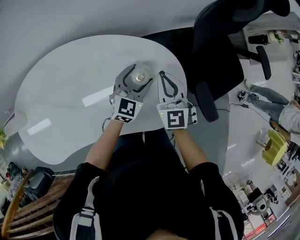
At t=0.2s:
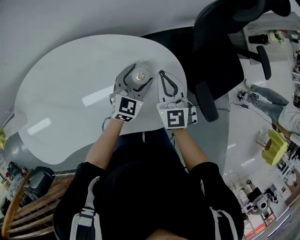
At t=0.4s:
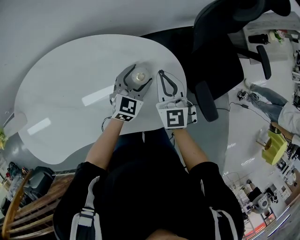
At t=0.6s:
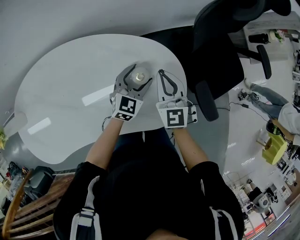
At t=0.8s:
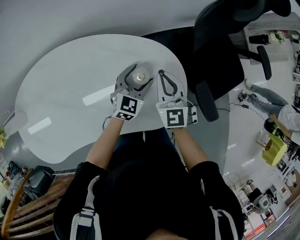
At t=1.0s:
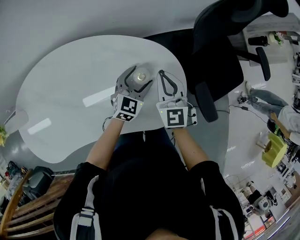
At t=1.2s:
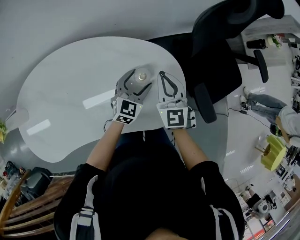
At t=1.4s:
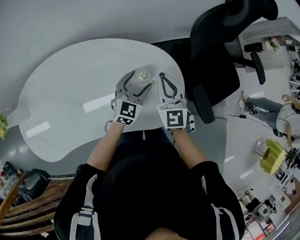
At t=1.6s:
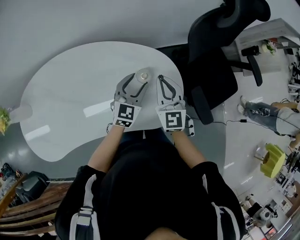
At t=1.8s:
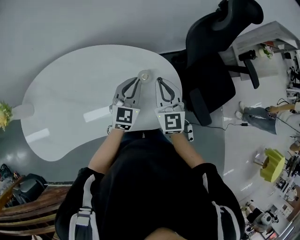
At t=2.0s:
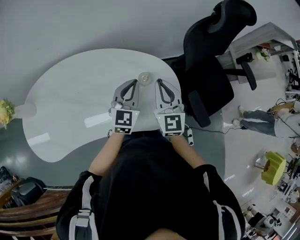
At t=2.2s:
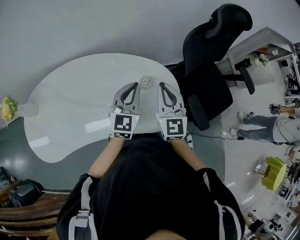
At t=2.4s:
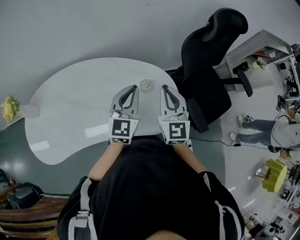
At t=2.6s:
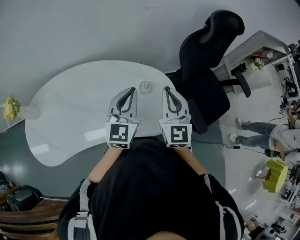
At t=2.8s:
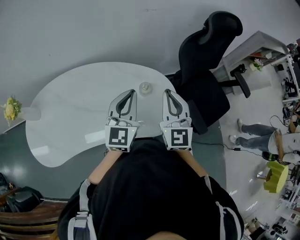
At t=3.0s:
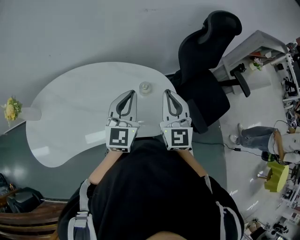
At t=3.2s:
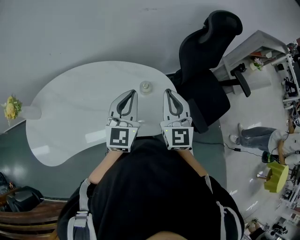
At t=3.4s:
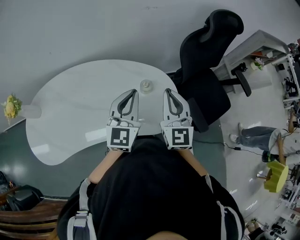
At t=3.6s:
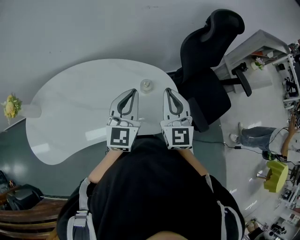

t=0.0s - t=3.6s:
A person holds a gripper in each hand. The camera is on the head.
t=0.0s - t=1.8s: The right gripper shifts approximately 10 cm upward. The left gripper moves upward and backward, approximately 10 cm, and closes its fingers.
t=1.8s - t=3.6s: Both grippers travel together upward and backward, roughly 15 cm.

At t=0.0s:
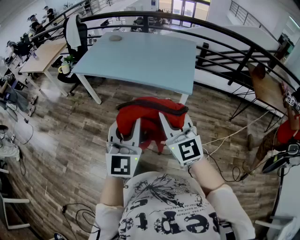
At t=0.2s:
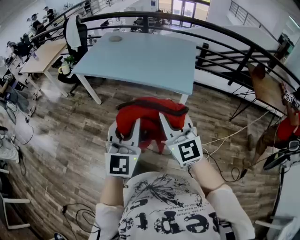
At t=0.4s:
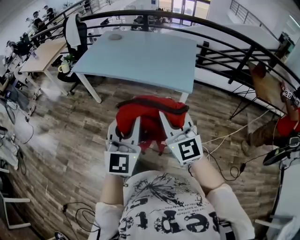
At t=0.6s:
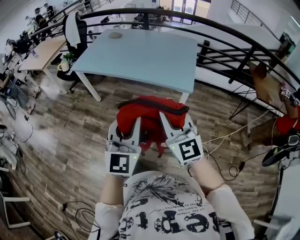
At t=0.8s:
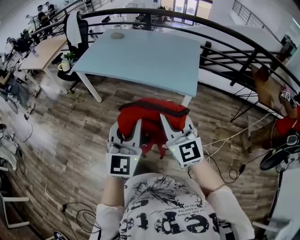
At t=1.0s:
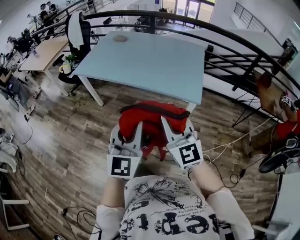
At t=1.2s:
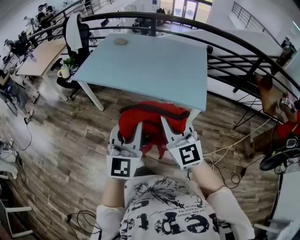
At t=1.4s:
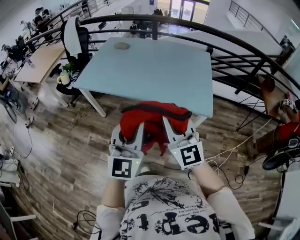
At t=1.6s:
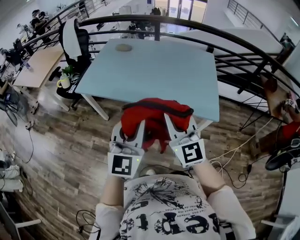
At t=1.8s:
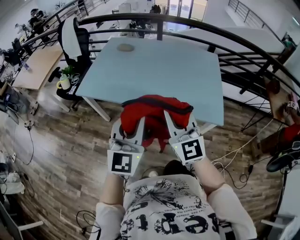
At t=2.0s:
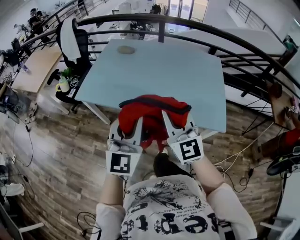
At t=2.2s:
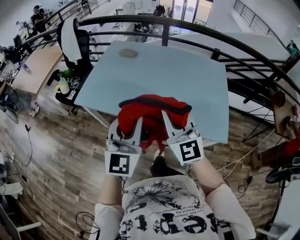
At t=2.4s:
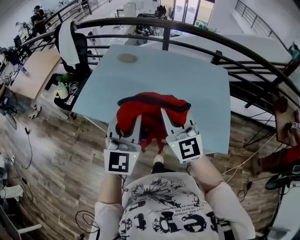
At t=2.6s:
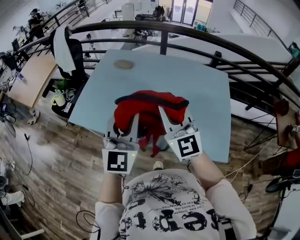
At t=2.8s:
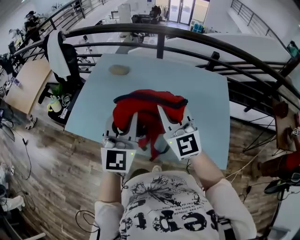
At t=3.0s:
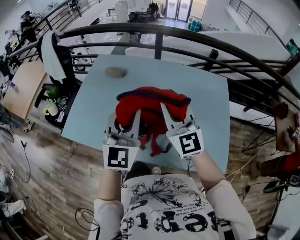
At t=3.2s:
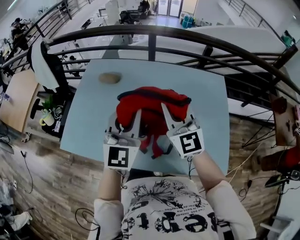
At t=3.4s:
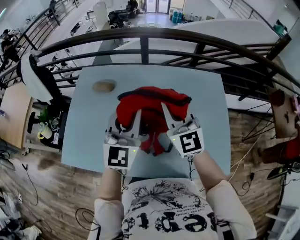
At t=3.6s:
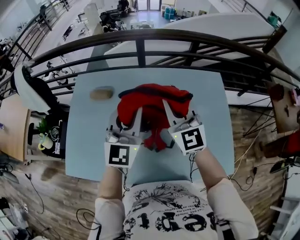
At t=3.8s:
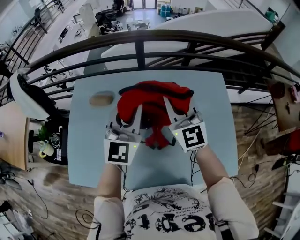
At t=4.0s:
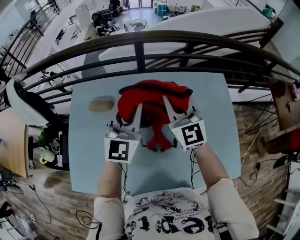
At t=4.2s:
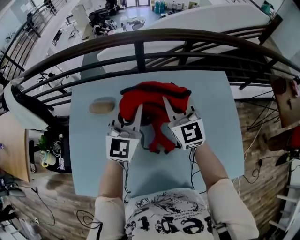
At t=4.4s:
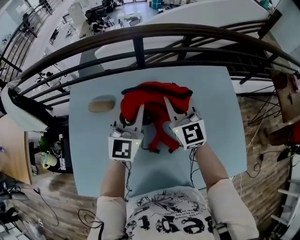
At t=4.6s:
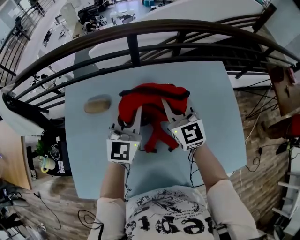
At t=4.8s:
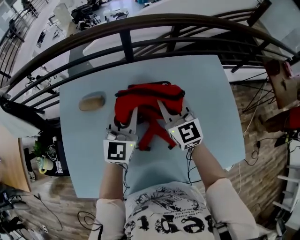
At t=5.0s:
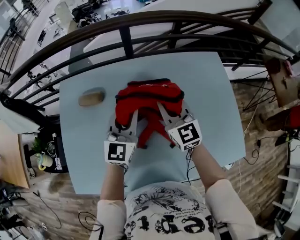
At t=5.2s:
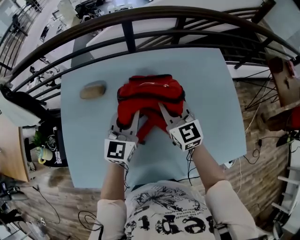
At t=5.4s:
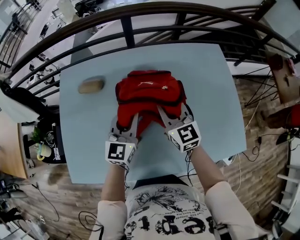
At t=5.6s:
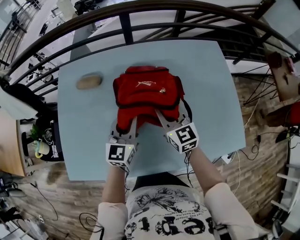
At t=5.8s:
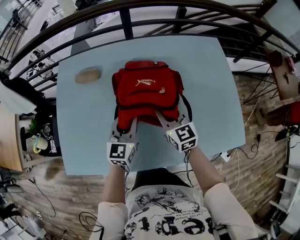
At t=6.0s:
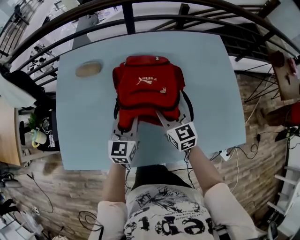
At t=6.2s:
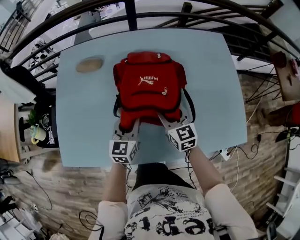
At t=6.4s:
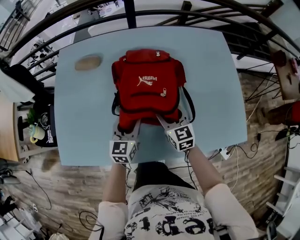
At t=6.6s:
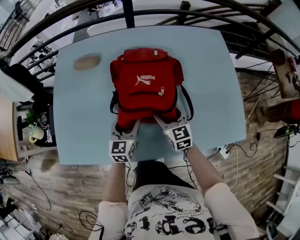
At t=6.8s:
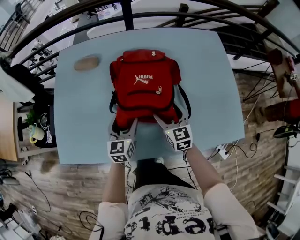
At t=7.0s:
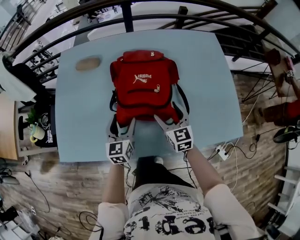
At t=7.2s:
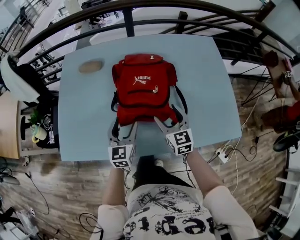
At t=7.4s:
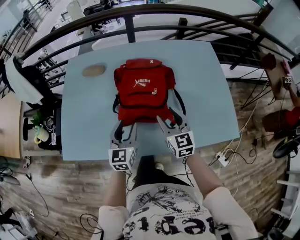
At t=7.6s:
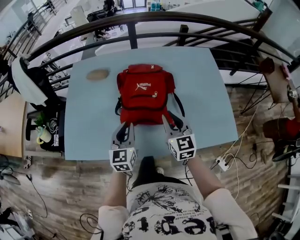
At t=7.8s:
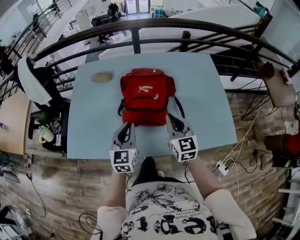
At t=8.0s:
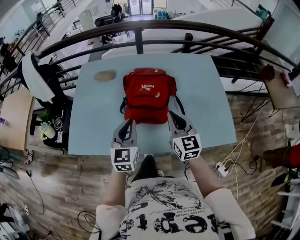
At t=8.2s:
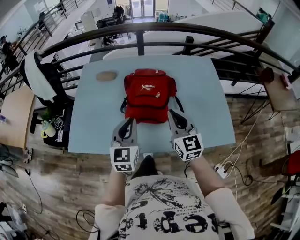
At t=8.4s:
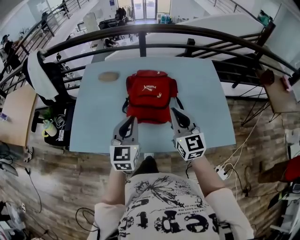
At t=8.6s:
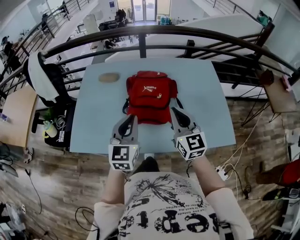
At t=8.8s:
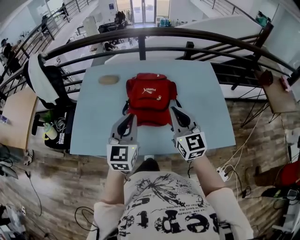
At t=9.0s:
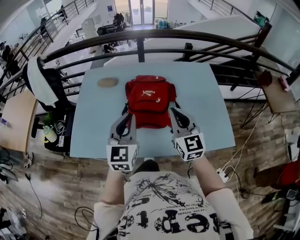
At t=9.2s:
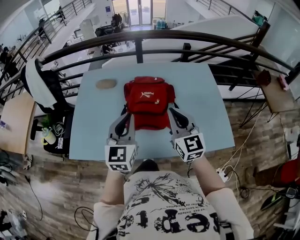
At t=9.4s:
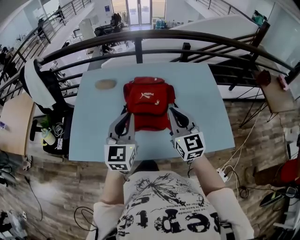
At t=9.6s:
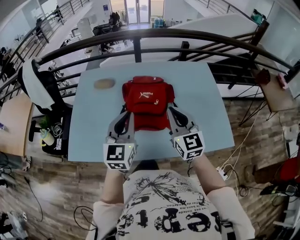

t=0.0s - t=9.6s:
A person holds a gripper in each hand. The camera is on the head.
t=0.0s - t=1.6s: Both grippers move forward and to the left, about 35 cm.
t=1.6s - t=3.2s: Both grippers are carried forward, roughly 50 cm.
t=3.2s - t=4.8s: The two grippers go roughly 25 cm forward and downward. The left gripper rotates approximately 20 degrees.
t=4.8s - t=6.4s: Both grippers travel together downward and backward, some 30 cm. The left gripper changes its angle by approximately 20 degrees, and opens. The right gripper rotates about 20 degrees, and opens its fingers.
t=6.4s - t=8.0s: The grippers both shift upward and backward by about 20 cm. The right gripper closes up, while the left gripper closes its fingers.
t=8.0s - t=9.6s: The two grippers go some 10 cm upward.

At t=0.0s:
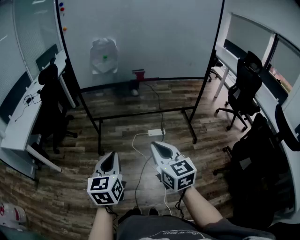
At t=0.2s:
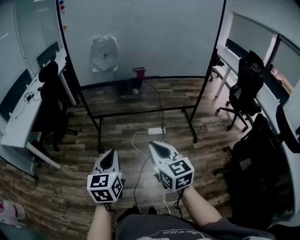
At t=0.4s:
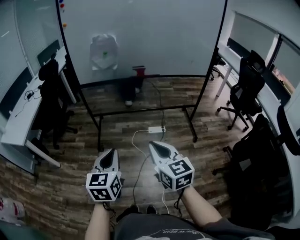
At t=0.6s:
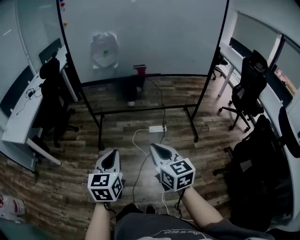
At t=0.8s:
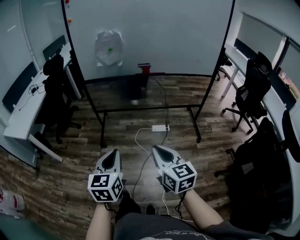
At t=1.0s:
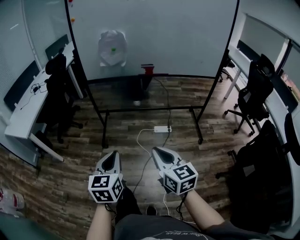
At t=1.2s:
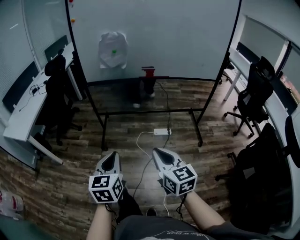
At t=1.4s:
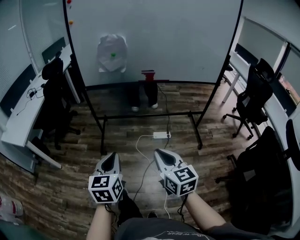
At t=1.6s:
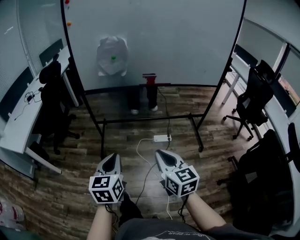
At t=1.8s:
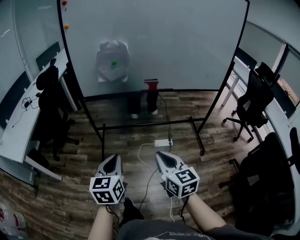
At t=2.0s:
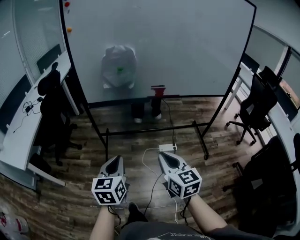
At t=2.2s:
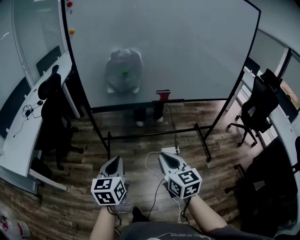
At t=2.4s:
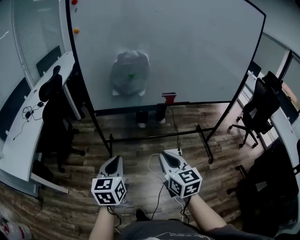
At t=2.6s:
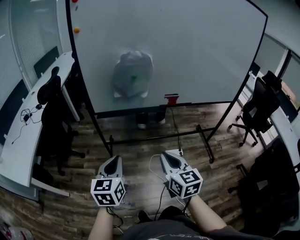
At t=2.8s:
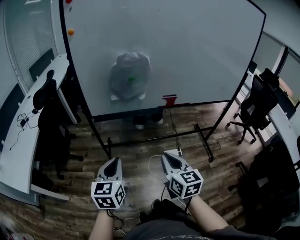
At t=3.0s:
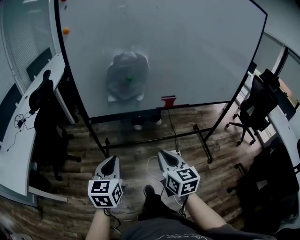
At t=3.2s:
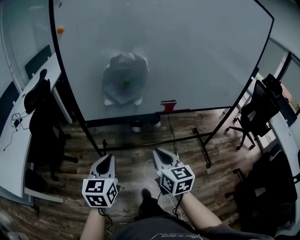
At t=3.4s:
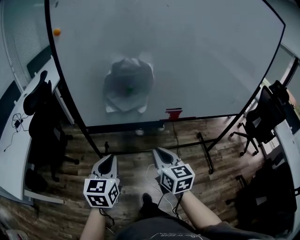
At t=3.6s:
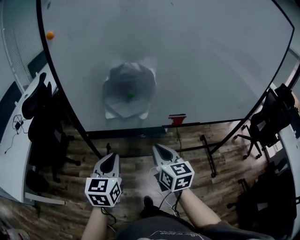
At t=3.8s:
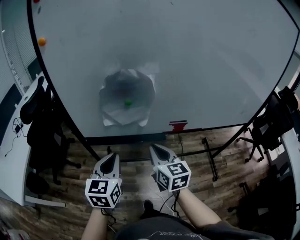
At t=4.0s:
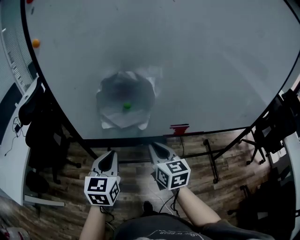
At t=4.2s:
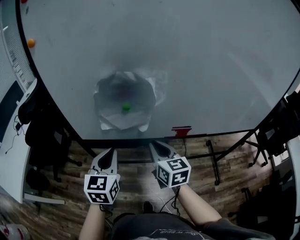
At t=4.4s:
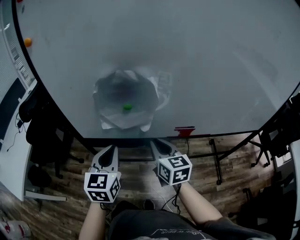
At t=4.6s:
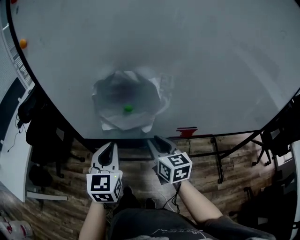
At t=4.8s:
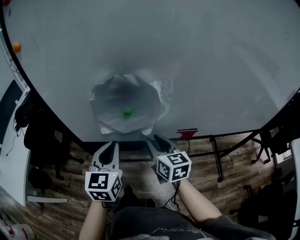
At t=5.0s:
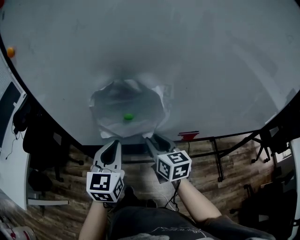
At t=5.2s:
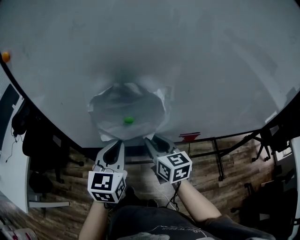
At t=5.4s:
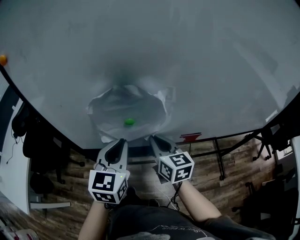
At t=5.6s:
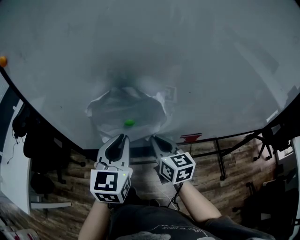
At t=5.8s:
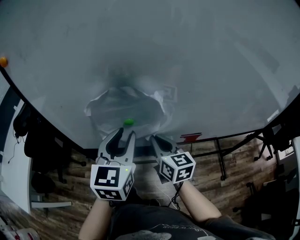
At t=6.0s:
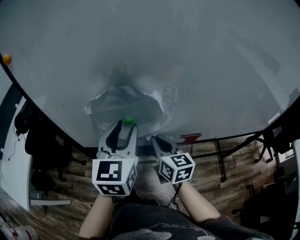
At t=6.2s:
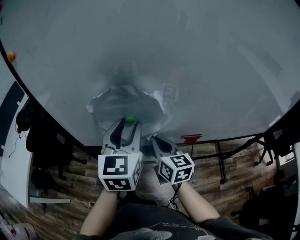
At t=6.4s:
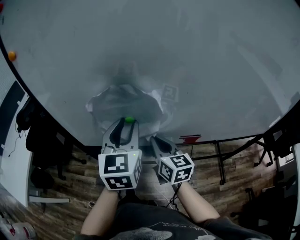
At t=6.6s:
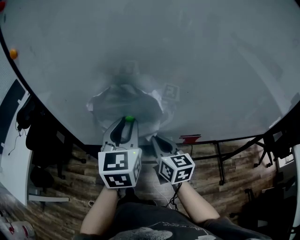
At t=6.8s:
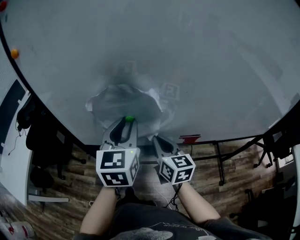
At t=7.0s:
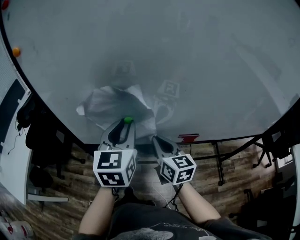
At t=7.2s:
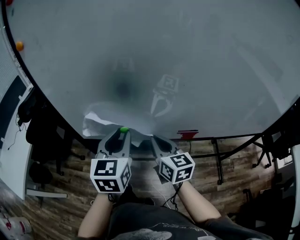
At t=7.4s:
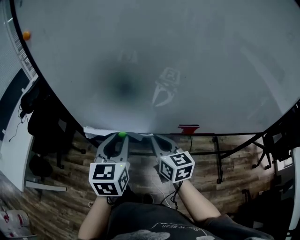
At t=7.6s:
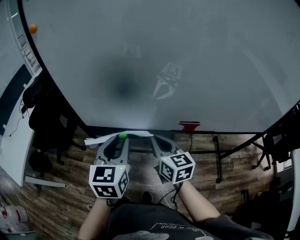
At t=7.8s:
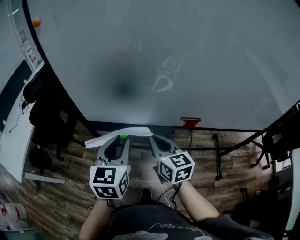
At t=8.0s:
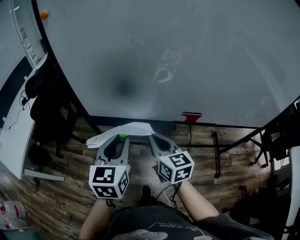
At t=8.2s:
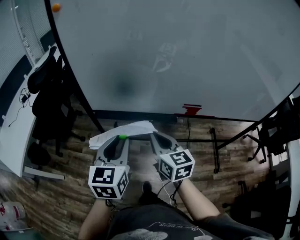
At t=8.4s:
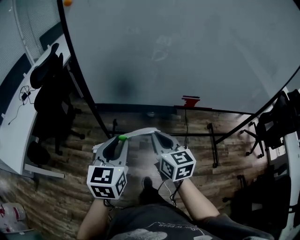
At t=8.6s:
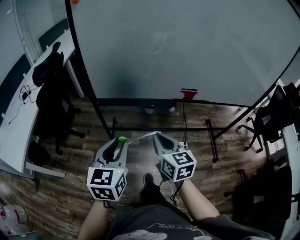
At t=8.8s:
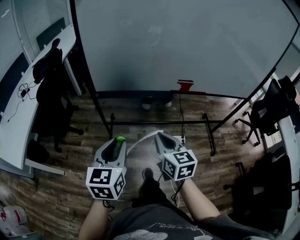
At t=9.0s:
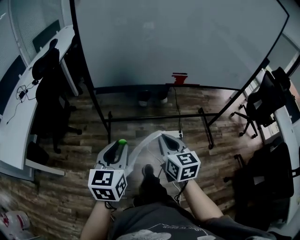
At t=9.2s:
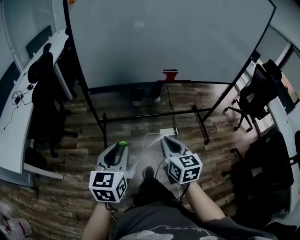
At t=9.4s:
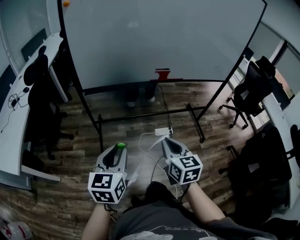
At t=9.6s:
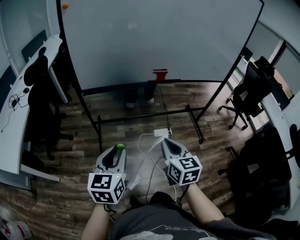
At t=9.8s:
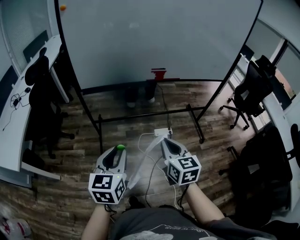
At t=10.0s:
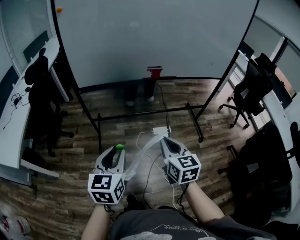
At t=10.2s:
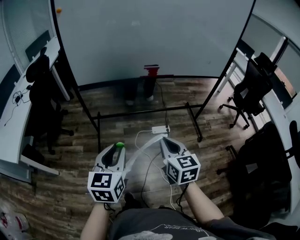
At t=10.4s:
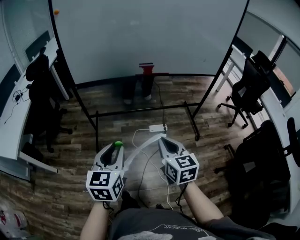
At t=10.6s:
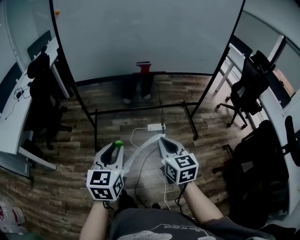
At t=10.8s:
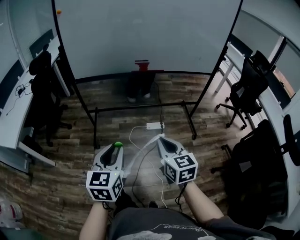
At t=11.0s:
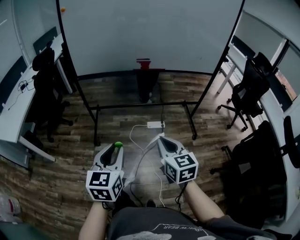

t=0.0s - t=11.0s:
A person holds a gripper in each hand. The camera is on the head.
t=0.0s - t=1.6s: Both grippers travel together forward, some 10 cm.
t=1.6s - t=3.2s: The right gripper goes about 30 cm forward; the left gripper travels forward and to the left by about 30 cm.
t=3.2s - t=4.8s: The grippers both shift forward by approximately 25 cm. The right gripper opens up.
t=4.8s - t=6.2s: The left gripper is displaced upward, to the right and forward by some 10 cm, and opens up. Meanwhile the right gripper closes up.
t=6.2s - t=7.8s: The right gripper goes some 10 cm backward. The left gripper shifts approximately 15 cm backward, downward and to the left.
t=7.8s - t=9.4s: Both grippers travel together backward, some 35 cm. The right gripper rotates approximately 20 degrees.
t=9.4s - t=11.0s: The two grippers go approximately 20 cm to the right and backward.
